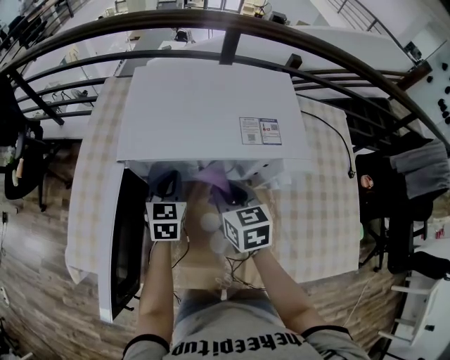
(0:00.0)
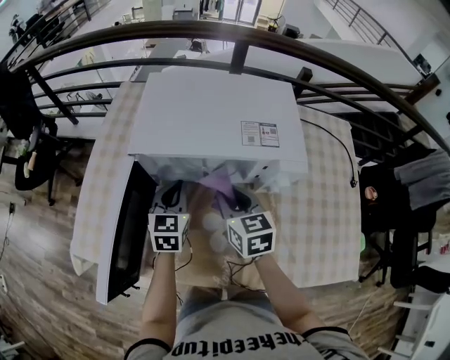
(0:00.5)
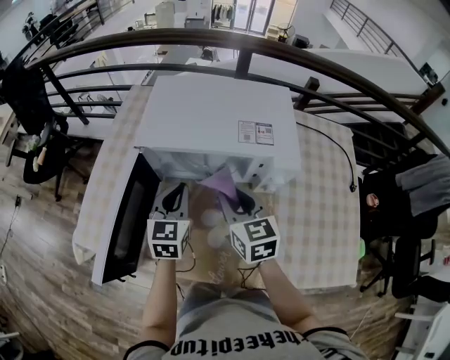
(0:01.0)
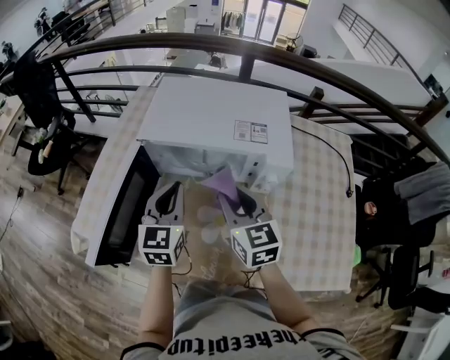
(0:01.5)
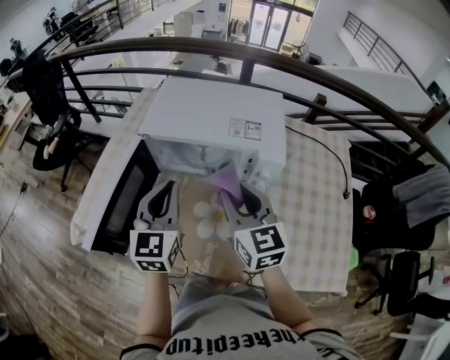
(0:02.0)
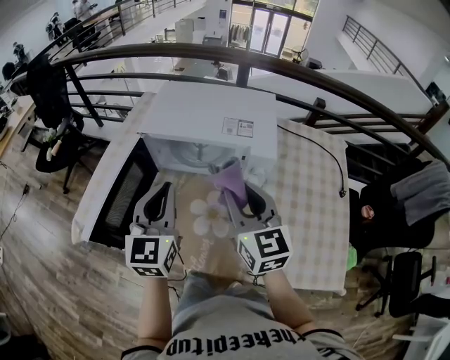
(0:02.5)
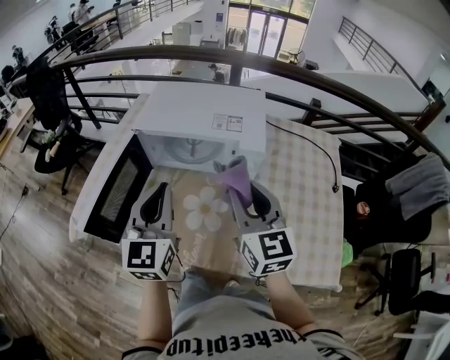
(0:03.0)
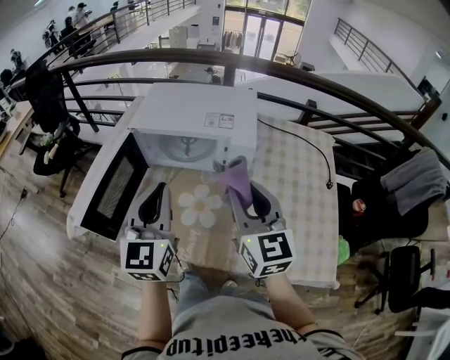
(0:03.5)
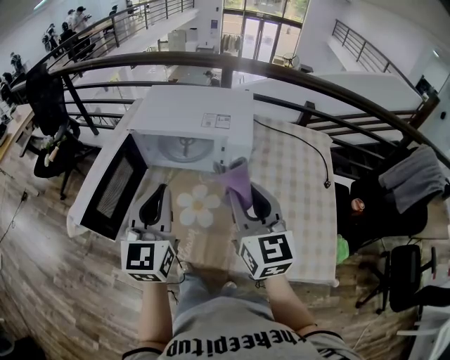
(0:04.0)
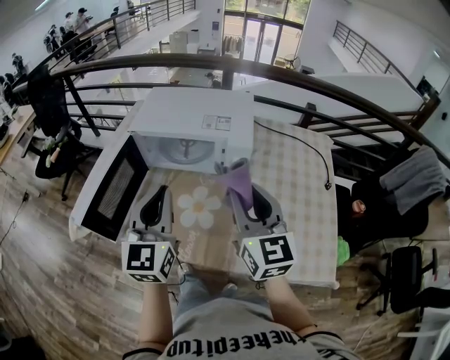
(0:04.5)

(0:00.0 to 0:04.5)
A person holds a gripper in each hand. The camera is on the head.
0:00.0 - 0:02.0: Both grippers move upward and backward, some 25 cm. The right gripper swivels some 30 degrees. Meanwhile the left gripper changes its angle by about 20 degrees.
0:02.0 - 0:04.5: The left gripper heads backward, upward and to the right, covering some 15 cm. Meanwhile the right gripper moves backward, to the right and upward, roughly 15 cm.

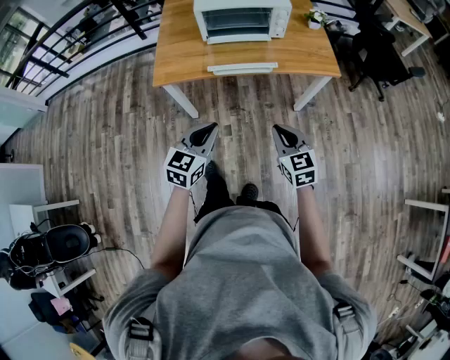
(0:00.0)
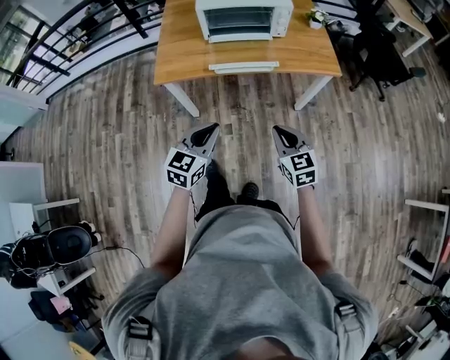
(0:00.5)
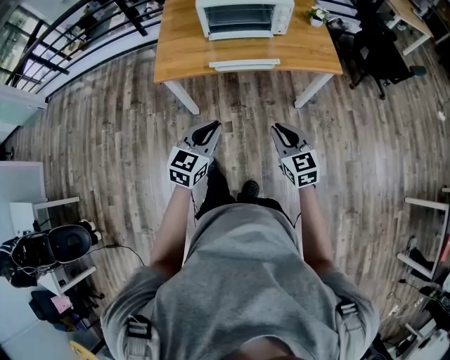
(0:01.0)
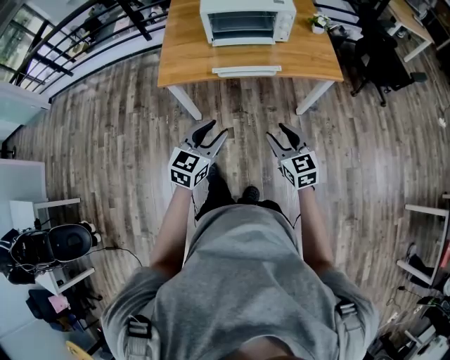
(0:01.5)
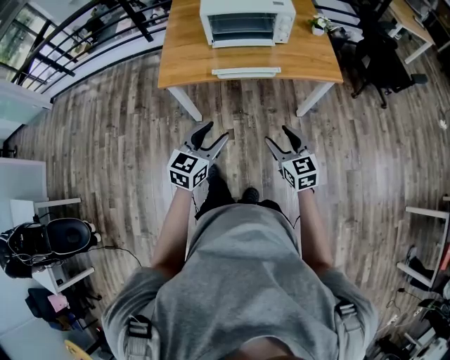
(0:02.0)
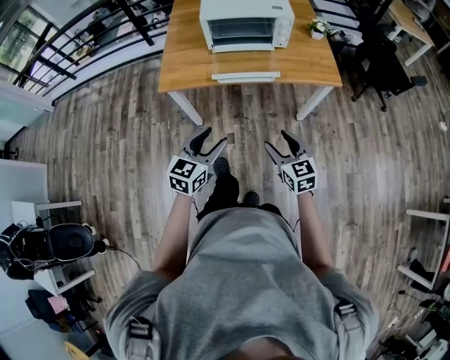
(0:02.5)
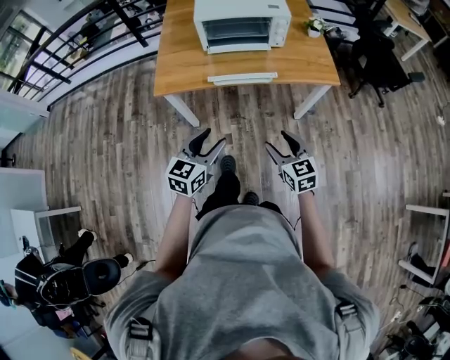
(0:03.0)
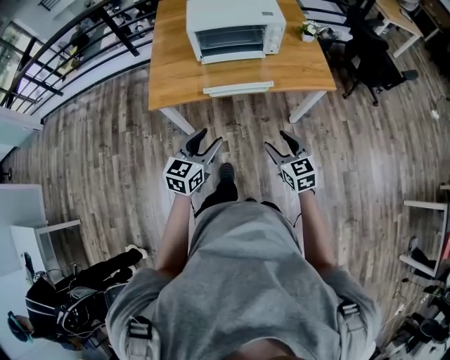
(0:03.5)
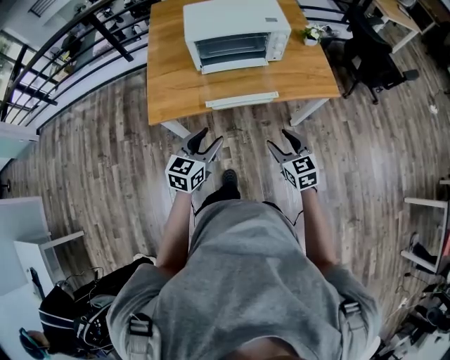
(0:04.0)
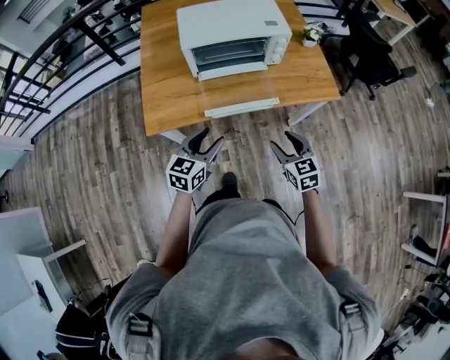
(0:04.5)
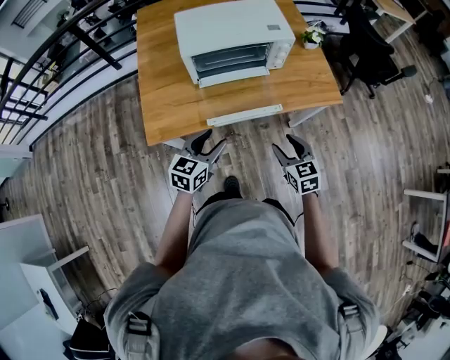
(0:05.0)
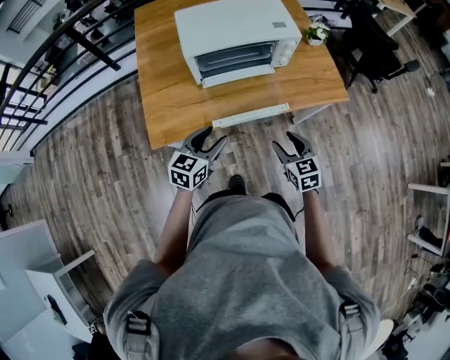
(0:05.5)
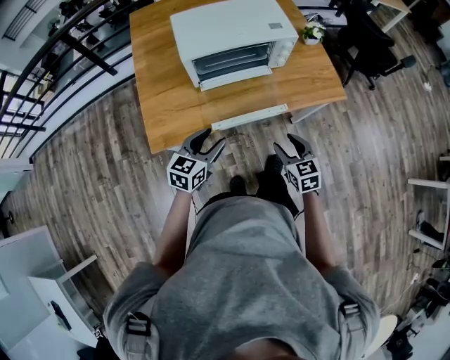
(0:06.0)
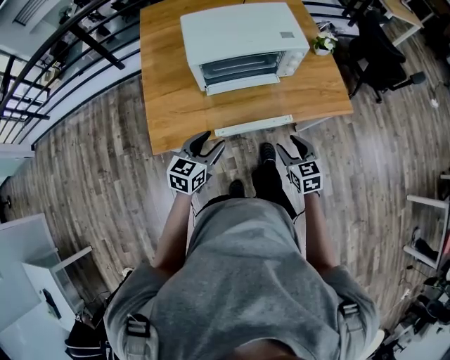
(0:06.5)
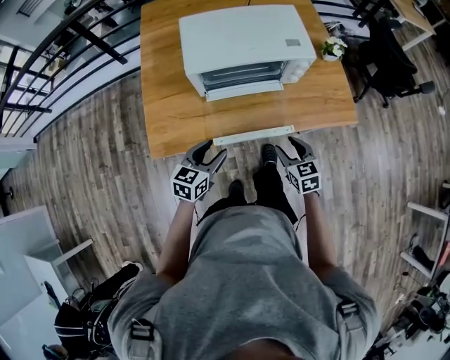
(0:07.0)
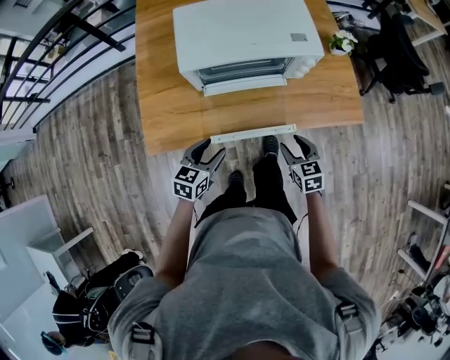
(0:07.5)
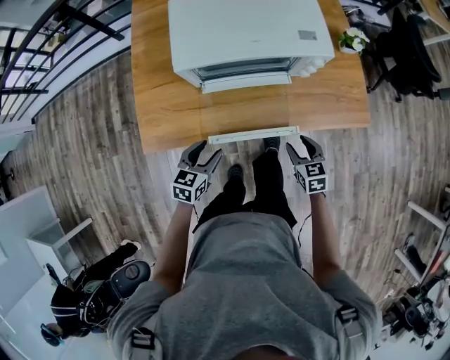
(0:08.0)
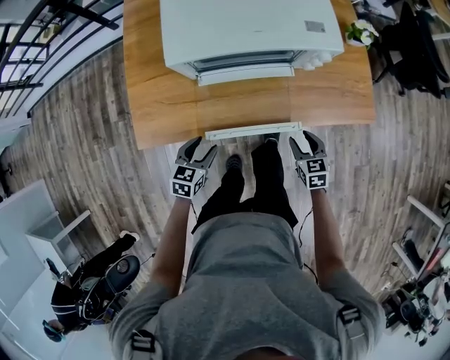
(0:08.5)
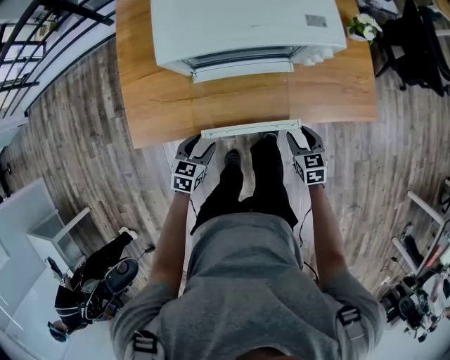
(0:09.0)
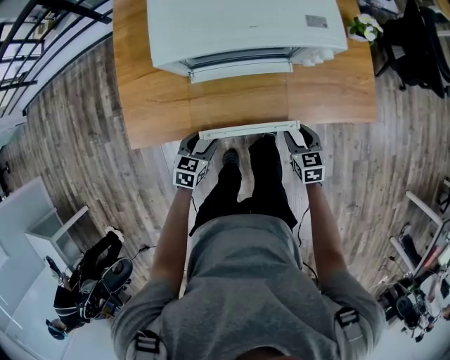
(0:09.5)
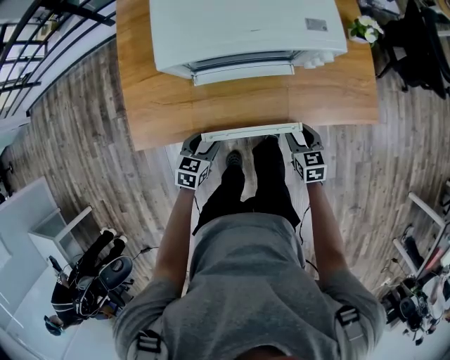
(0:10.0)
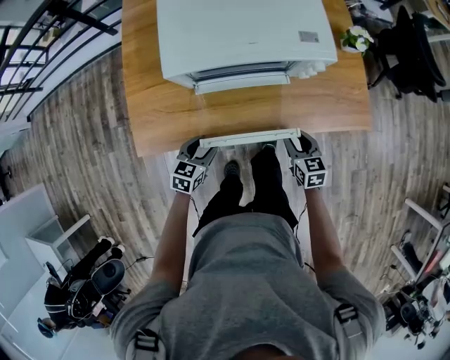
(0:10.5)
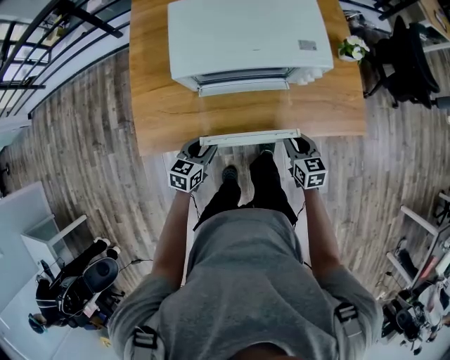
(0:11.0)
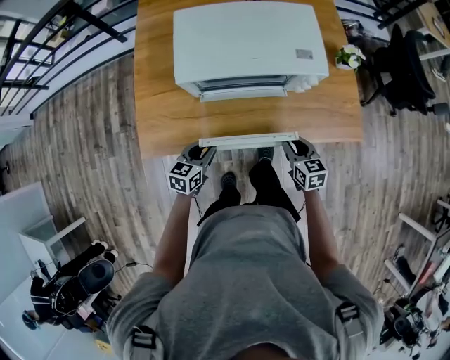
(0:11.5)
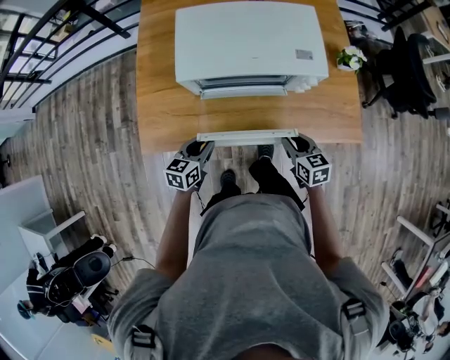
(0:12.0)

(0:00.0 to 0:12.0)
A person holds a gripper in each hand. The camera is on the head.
0:00.0 - 0:02.0: The right gripper opens its fingers. The left gripper opens its fingers.
0:02.0 - 0:04.0: The two grippers go roughly 15 cm forward.
0:04.0 - 0:06.0: The left gripper is displaced forward and to the left by approximately 15 cm. The right gripper heads forward, covering some 10 cm.
0:06.0 - 0:08.0: The left gripper moves downward and forward, roughly 15 cm; the right gripper is displaced forward and downward by some 20 cm.
0:08.0 - 0:10.0: The left gripper goes some 10 cm downward. Meanwhile the right gripper is displaced downward by roughly 5 cm.
0:10.0 - 0:12.0: The two grippers go approximately 10 cm upward. The left gripper closes its fingers.

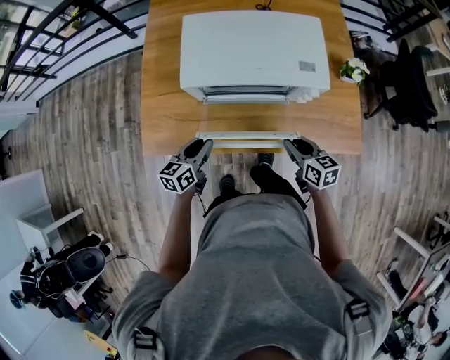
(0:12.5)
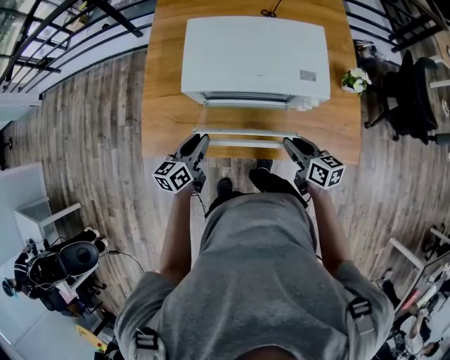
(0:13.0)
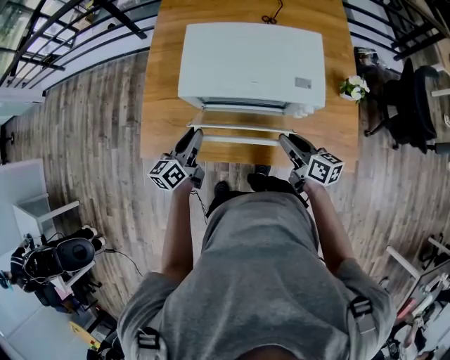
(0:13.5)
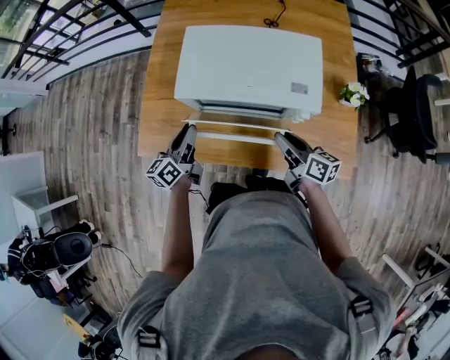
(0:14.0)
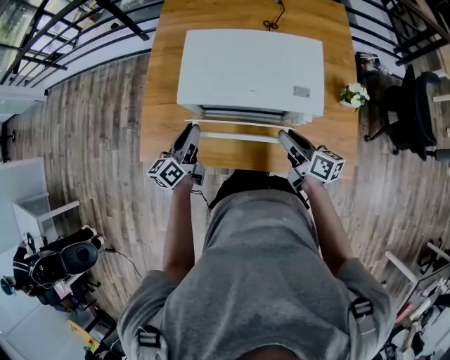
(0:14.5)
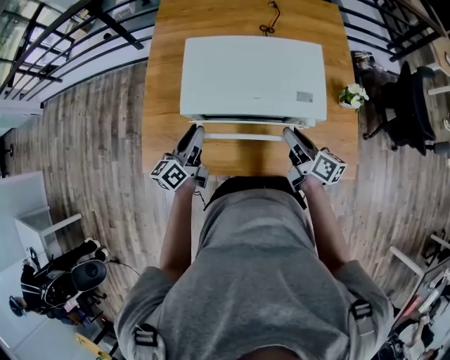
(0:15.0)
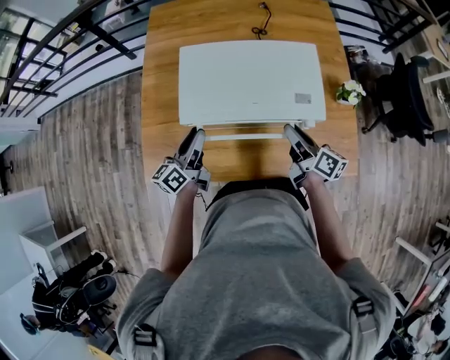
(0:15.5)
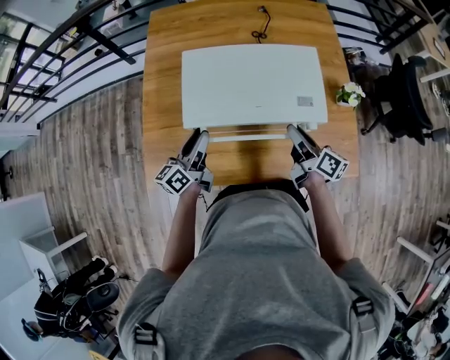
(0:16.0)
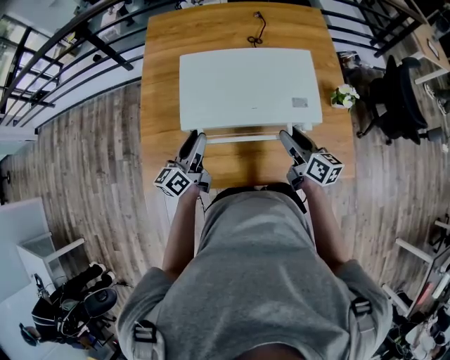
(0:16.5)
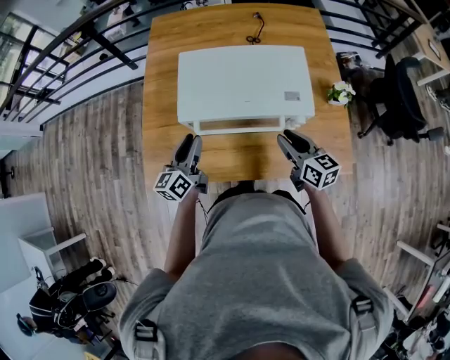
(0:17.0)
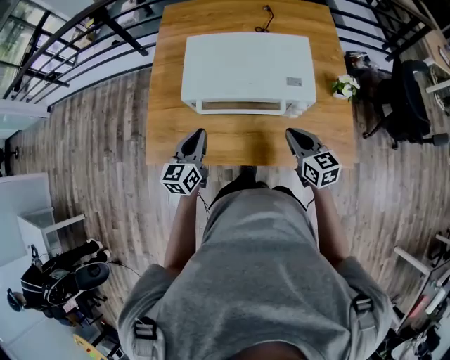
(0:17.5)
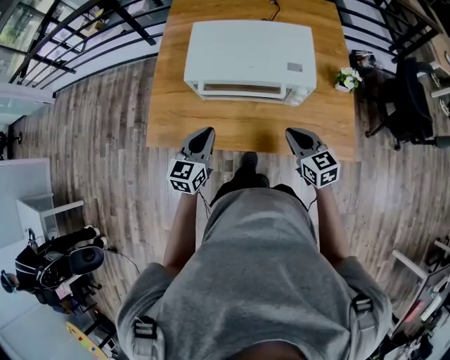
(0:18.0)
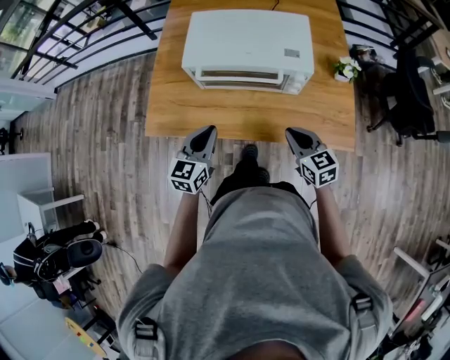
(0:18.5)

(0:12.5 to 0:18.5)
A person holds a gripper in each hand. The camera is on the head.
0:12.5 - 0:14.5: The grippers both shift forward and upward by roughly 10 cm. The right gripper rotates some 30 degrees; the left gripper turns by roughly 30 degrees.
0:14.5 - 0:16.5: The left gripper moves forward, about 5 cm.
0:16.5 - 0:18.5: Both grippers move backward, approximately 20 cm. The left gripper changes its angle by about 40 degrees, and closes its fingers. Meanwhile the right gripper swivels about 40 degrees, and closes up.

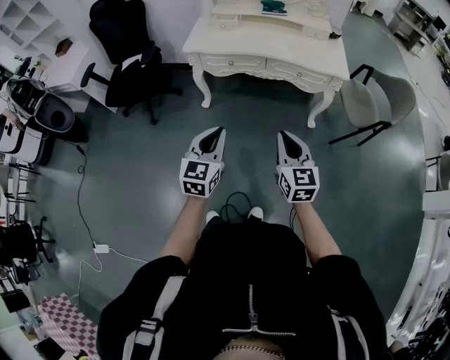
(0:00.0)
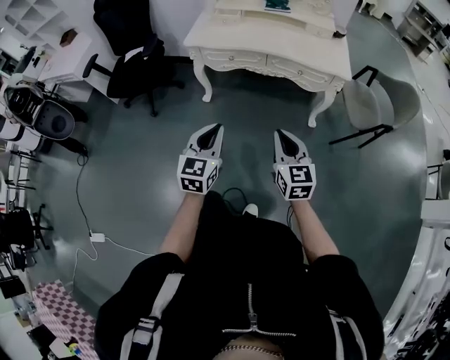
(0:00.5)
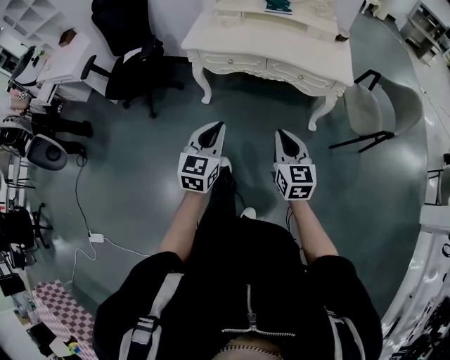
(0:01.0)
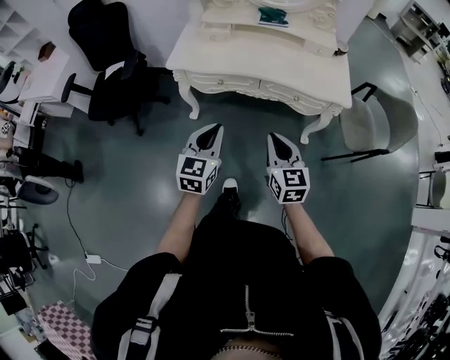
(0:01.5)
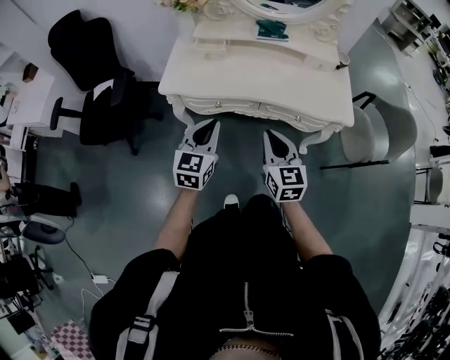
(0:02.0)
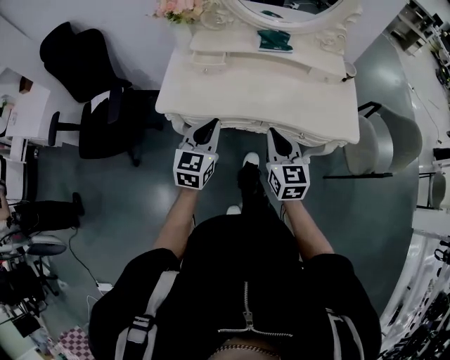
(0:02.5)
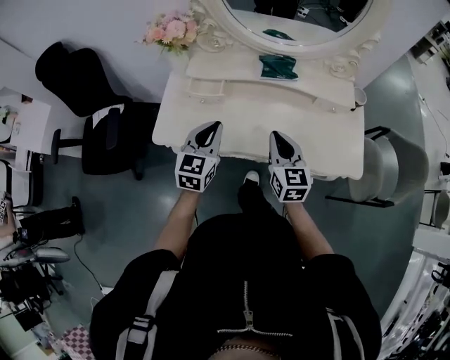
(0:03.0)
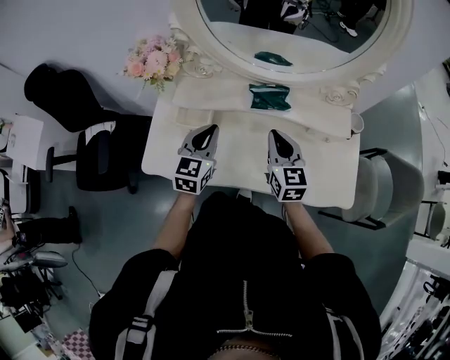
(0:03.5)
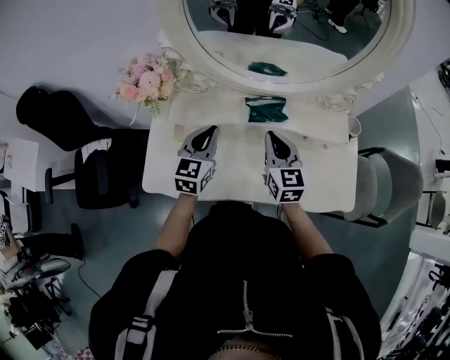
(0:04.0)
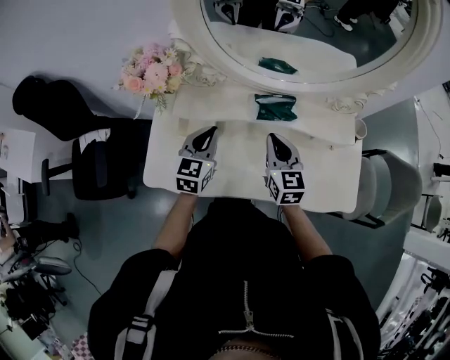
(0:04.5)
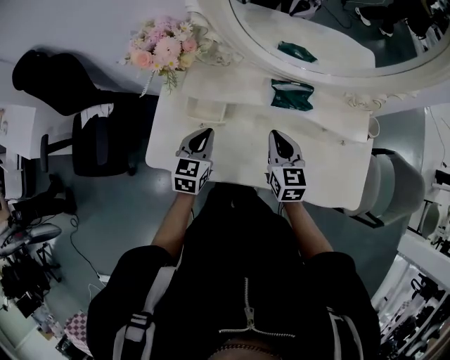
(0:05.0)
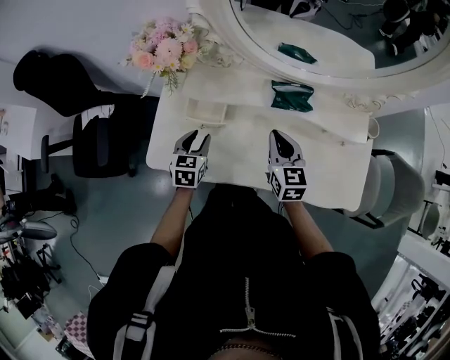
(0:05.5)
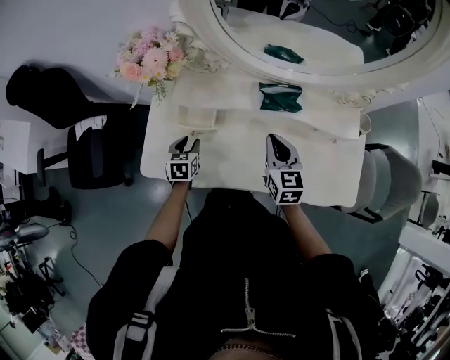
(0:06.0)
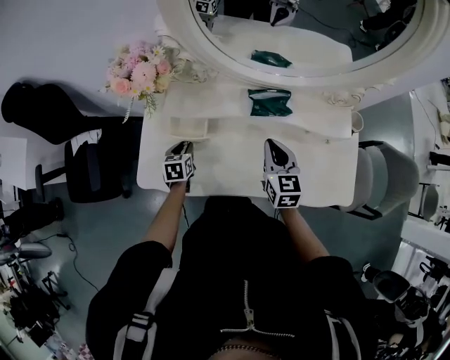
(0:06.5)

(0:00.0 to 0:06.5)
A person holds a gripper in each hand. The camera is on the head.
0:00.0 - 0:02.0: Both grippers move forward, roughly 35 cm.
0:02.0 - 0:04.5: The pair of grippers is taken forward, about 40 cm.
0:04.5 - 0:06.5: The left gripper heads downward and to the left, covering roughly 20 cm, changes its angle by about 30 degrees, and opens its fingers.
